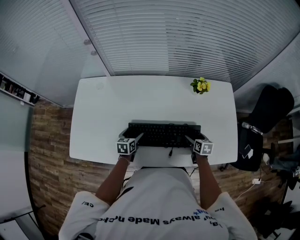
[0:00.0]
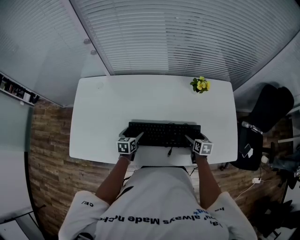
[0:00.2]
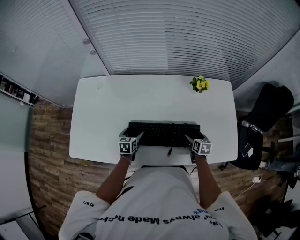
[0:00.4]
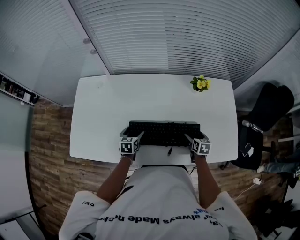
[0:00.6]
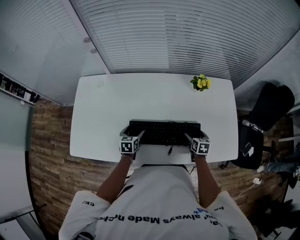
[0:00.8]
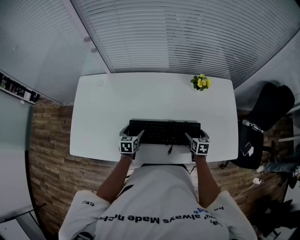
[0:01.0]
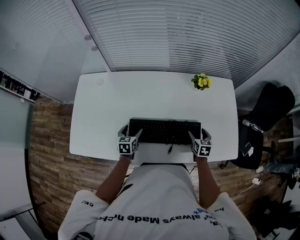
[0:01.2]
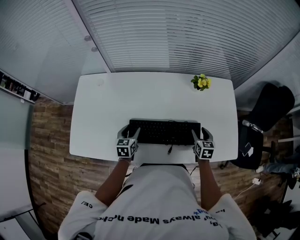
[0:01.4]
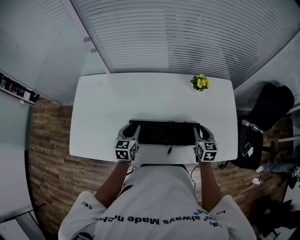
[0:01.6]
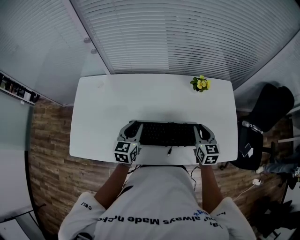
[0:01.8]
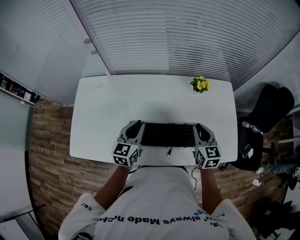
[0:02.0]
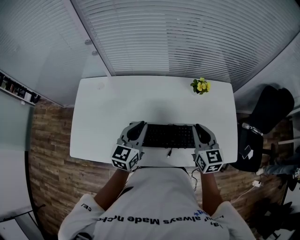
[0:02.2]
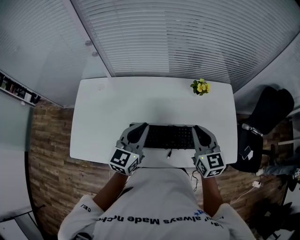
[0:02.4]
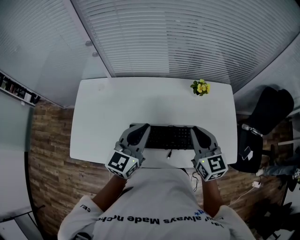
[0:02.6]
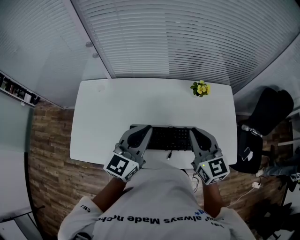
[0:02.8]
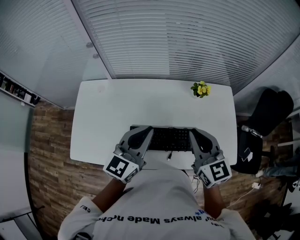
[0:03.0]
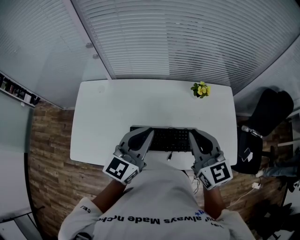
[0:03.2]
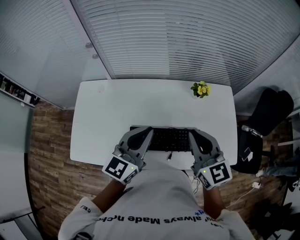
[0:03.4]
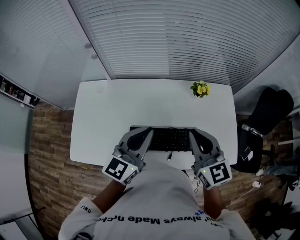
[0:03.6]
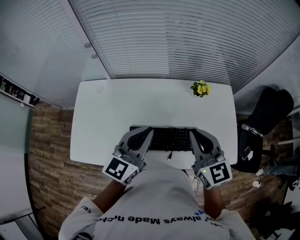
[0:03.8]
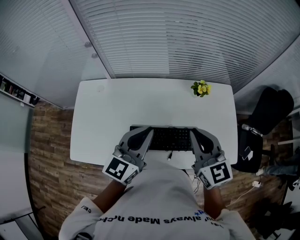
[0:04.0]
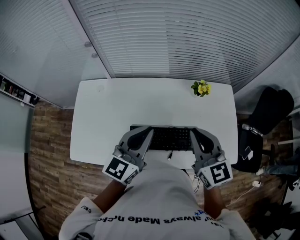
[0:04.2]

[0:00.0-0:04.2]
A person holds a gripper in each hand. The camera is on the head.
0:00.0 to 0:01.4: The two grippers go some 5 cm upward. The right gripper closes.
0:01.4 to 0:02.8: The left gripper travels upward by some 30 cm, points its fingers roughly 30 degrees further upward, and closes. The right gripper is displaced upward and to the left by about 30 cm, turns by some 30 degrees, and closes.
0:02.8 to 0:04.2: The grippers make only small movements.

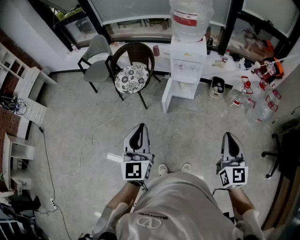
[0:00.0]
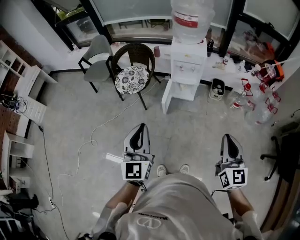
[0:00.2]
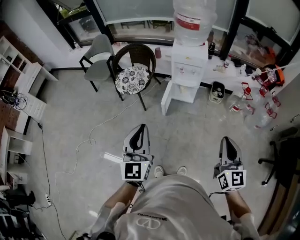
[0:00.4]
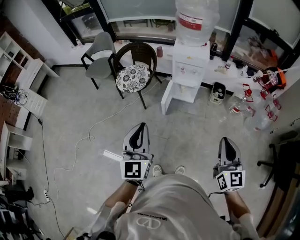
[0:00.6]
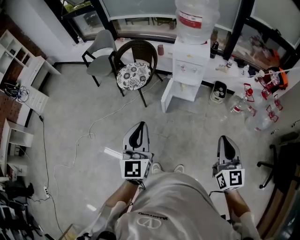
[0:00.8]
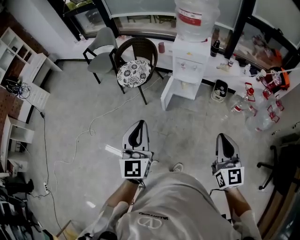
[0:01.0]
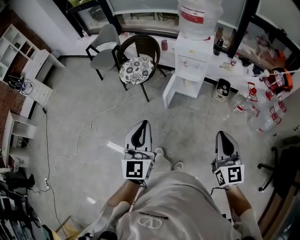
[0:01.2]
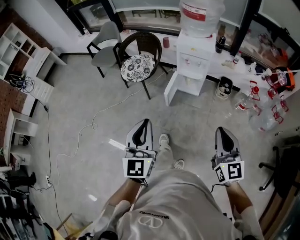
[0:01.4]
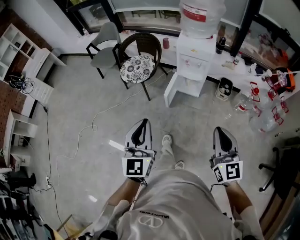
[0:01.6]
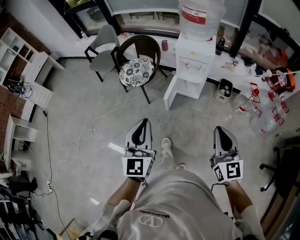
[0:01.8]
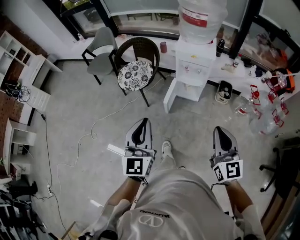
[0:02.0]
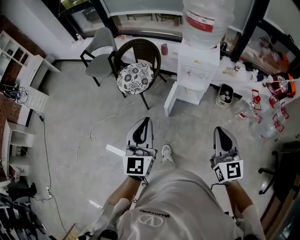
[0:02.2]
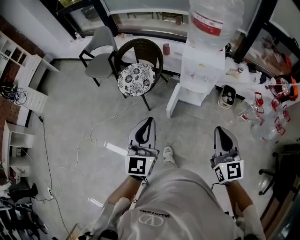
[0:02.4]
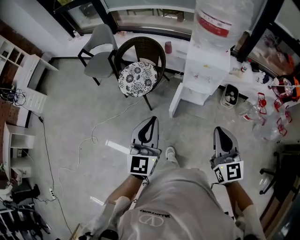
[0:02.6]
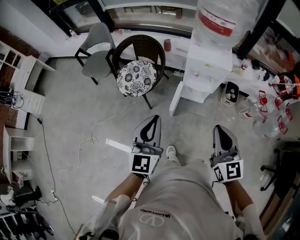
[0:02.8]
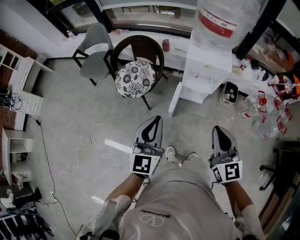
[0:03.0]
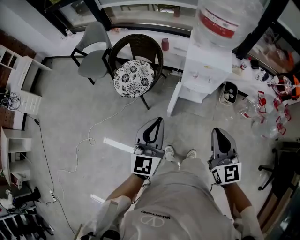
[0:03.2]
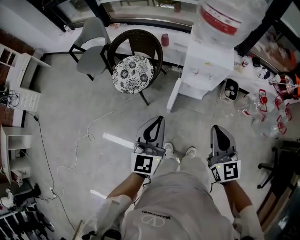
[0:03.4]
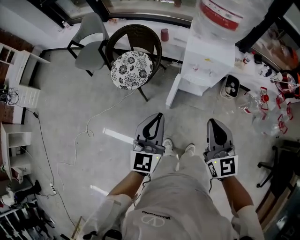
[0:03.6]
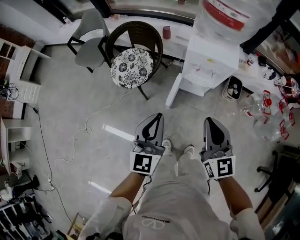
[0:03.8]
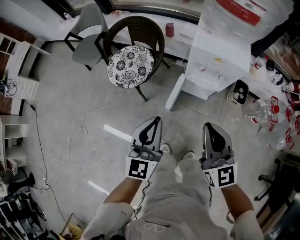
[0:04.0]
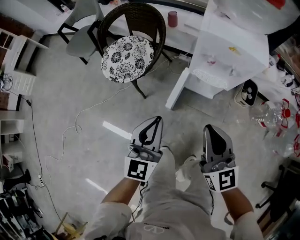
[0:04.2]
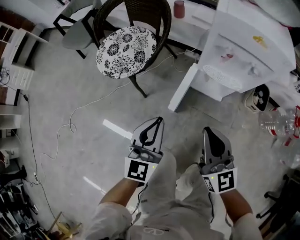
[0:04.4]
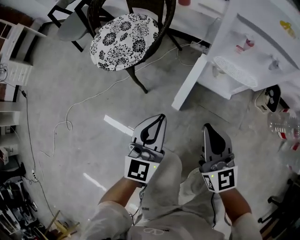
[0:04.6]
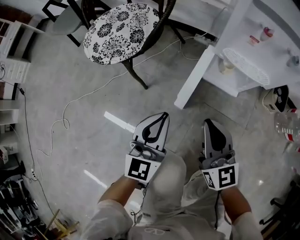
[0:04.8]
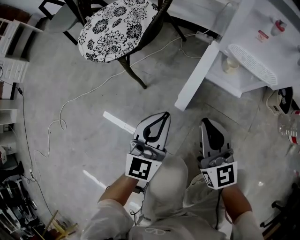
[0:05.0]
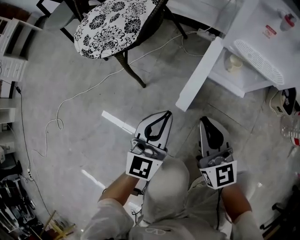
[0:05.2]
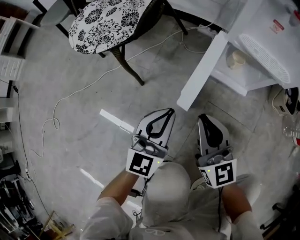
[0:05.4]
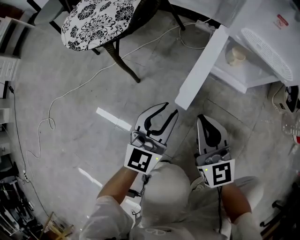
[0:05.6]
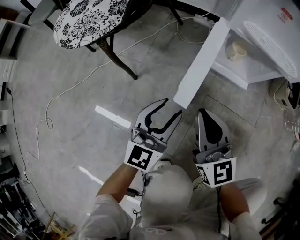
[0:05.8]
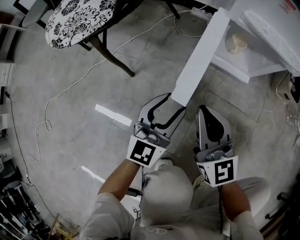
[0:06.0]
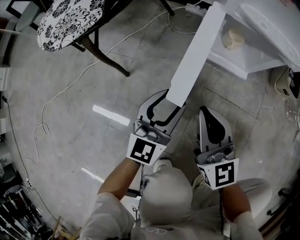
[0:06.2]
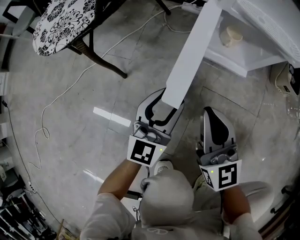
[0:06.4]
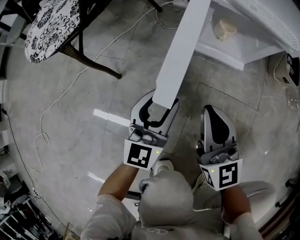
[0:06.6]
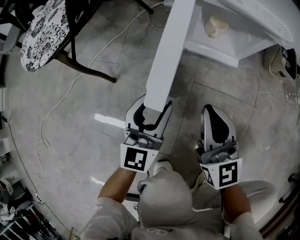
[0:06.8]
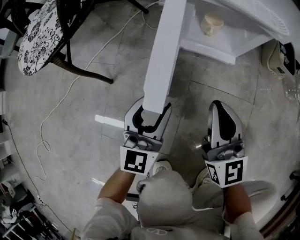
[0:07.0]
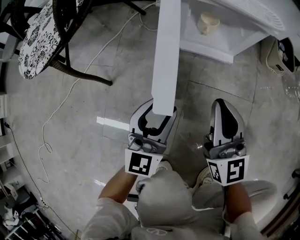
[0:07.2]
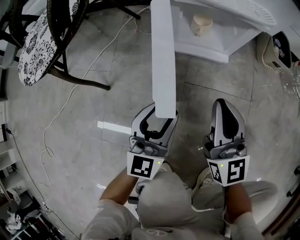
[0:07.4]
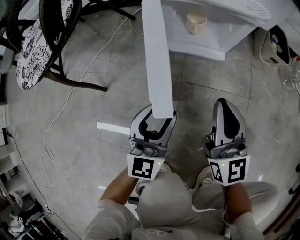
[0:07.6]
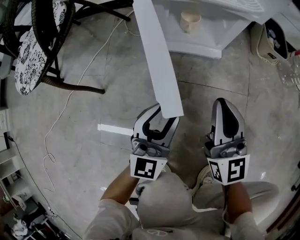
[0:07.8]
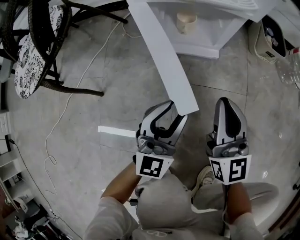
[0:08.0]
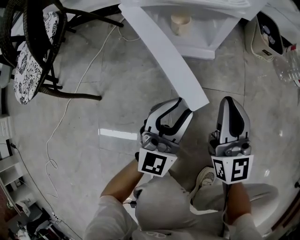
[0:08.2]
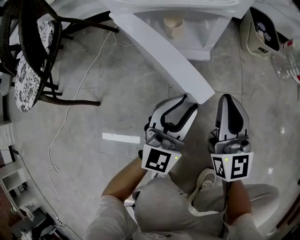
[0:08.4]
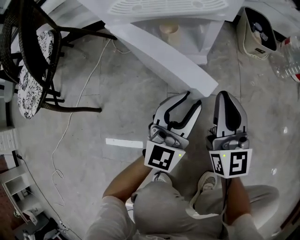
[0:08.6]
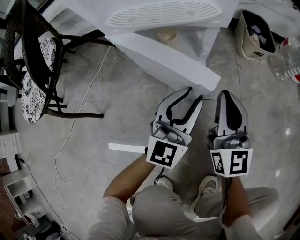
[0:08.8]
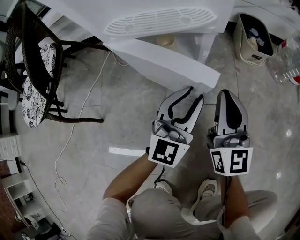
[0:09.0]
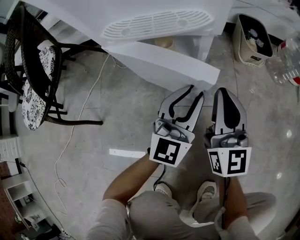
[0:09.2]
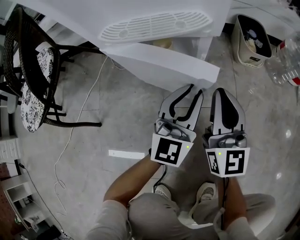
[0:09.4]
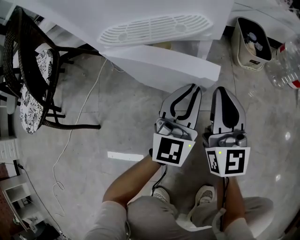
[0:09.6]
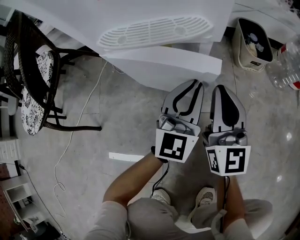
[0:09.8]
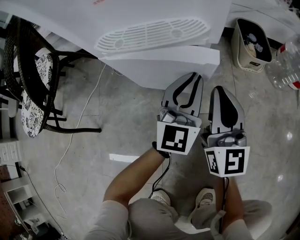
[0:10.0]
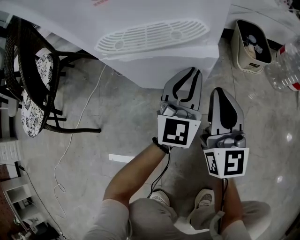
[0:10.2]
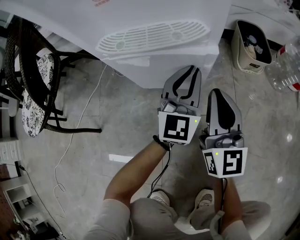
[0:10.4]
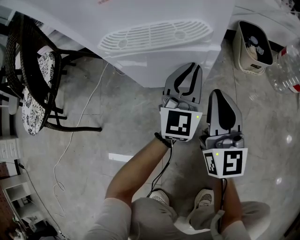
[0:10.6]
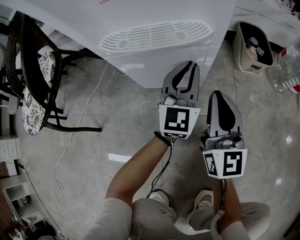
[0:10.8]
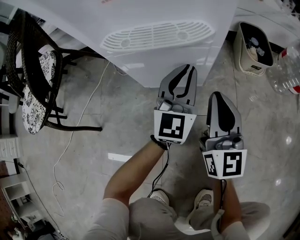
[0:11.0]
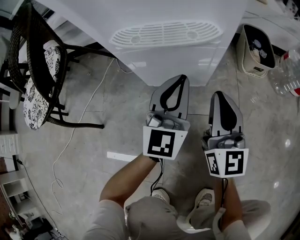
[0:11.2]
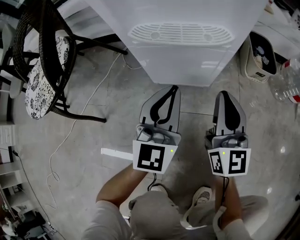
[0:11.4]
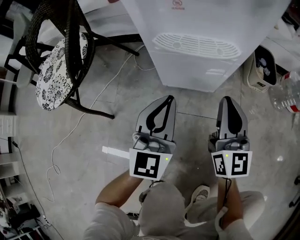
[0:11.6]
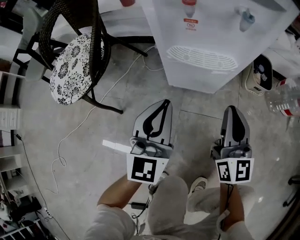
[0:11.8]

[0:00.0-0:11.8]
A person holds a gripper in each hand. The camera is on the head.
0:00.0 to 0:01.4: The left gripper shifts some 10 cm to the right.
0:01.4 to 0:03.0: Both grippers move forward, roughly 30 cm.
0:03.0 to 0:04.4: The grippers both shift downward by about 40 cm.
0:04.4 to 0:06.0: The grippers both shift downward by approximately 35 cm. The left gripper opens its fingers.
0:06.0 to 0:07.4: The right gripper heads to the right, covering roughly 15 cm. The left gripper goes roughly 10 cm to the right.
0:07.4 to 0:08.8: The grippers both shift to the right and forward by about 15 cm.
0:08.8 to 0:10.4: The right gripper moves forward, approximately 5 cm. The left gripper goes about 15 cm forward.
0:10.4 to 0:11.8: The right gripper travels upward by about 15 cm, while the left gripper shifts some 30 cm upward, to the left and backward.

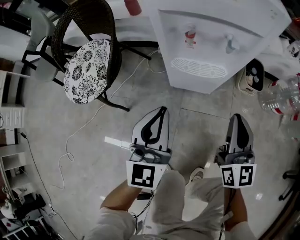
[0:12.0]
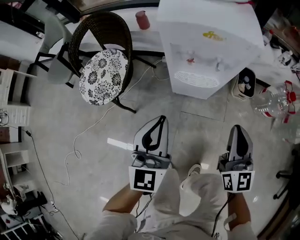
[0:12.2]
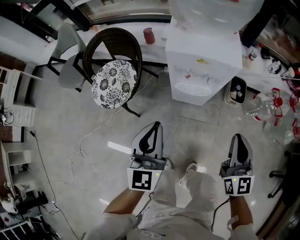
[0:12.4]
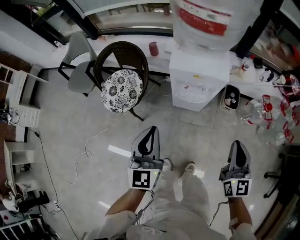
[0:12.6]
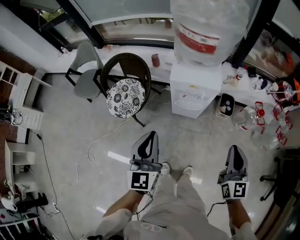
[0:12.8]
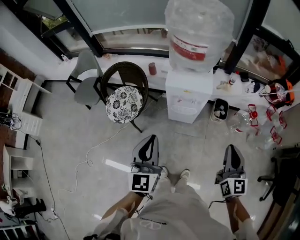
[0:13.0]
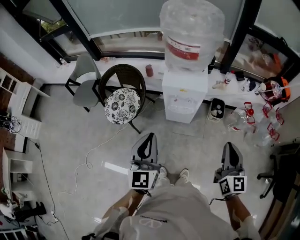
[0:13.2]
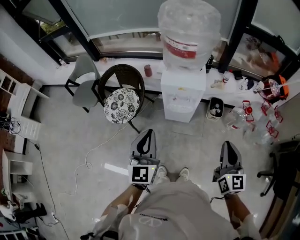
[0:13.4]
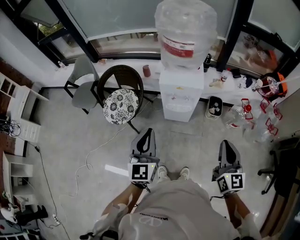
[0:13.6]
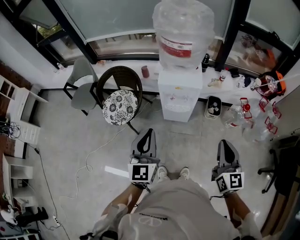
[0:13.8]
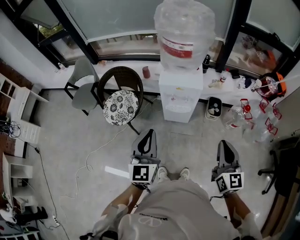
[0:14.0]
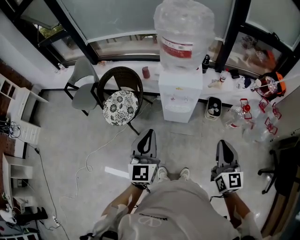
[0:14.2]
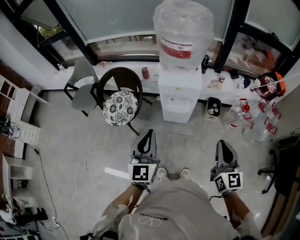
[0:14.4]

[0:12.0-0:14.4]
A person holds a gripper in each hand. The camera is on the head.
0:12.0 to 0:13.2: Both grippers travel together upward, some 50 cm.
0:13.2 to 0:14.4: The grippers stay close to where they were, moving slightly.

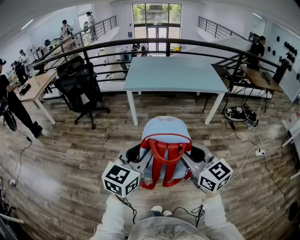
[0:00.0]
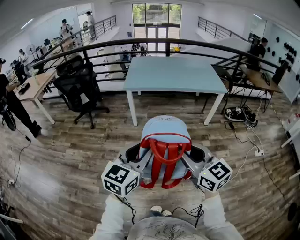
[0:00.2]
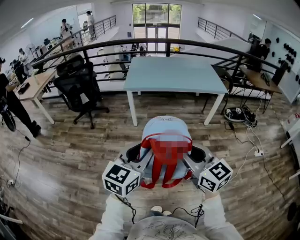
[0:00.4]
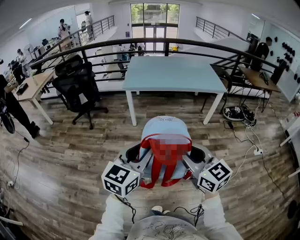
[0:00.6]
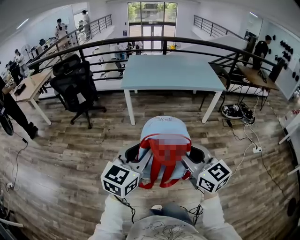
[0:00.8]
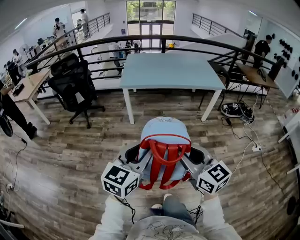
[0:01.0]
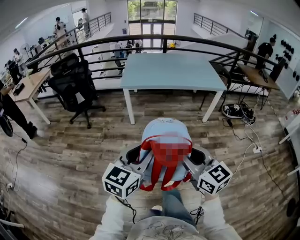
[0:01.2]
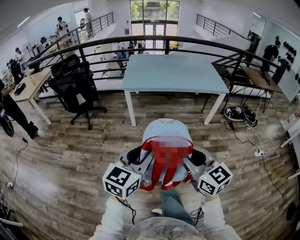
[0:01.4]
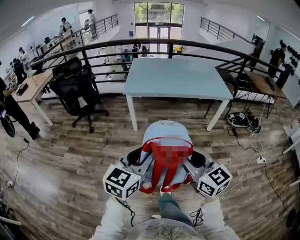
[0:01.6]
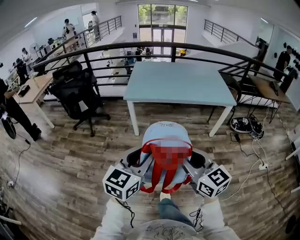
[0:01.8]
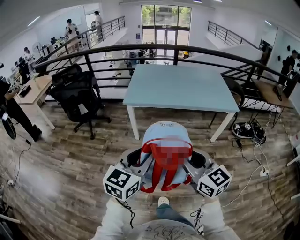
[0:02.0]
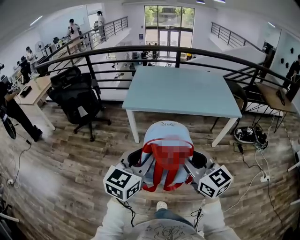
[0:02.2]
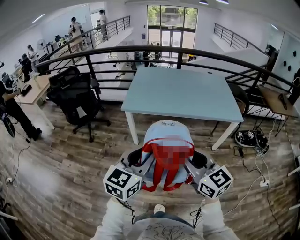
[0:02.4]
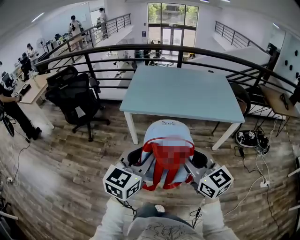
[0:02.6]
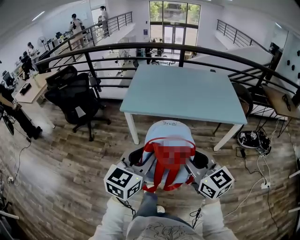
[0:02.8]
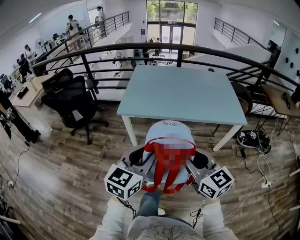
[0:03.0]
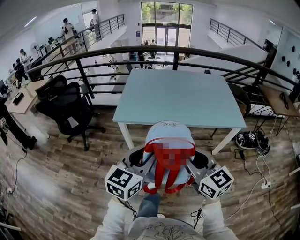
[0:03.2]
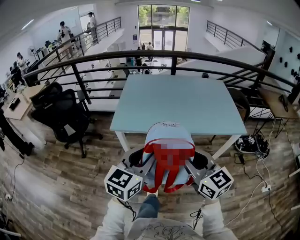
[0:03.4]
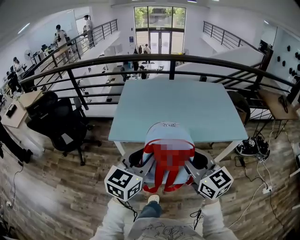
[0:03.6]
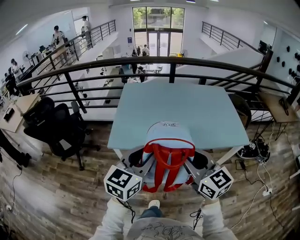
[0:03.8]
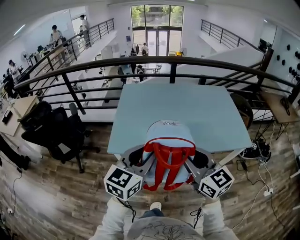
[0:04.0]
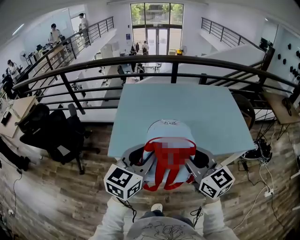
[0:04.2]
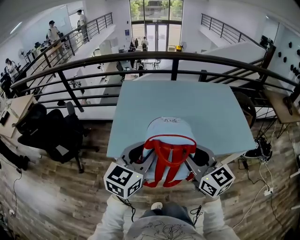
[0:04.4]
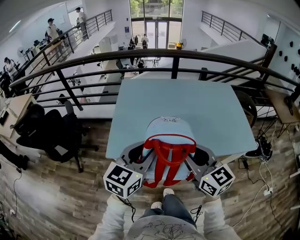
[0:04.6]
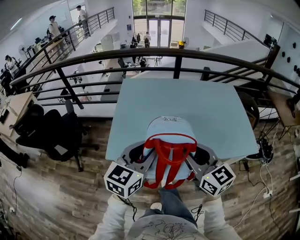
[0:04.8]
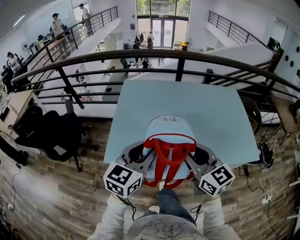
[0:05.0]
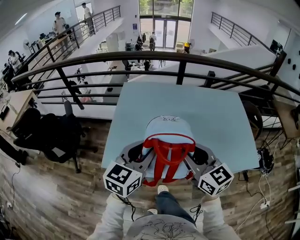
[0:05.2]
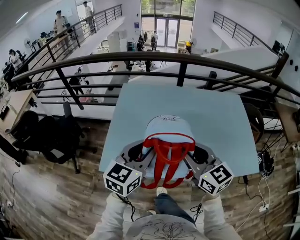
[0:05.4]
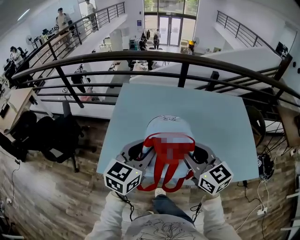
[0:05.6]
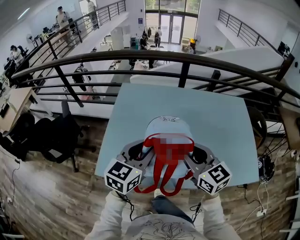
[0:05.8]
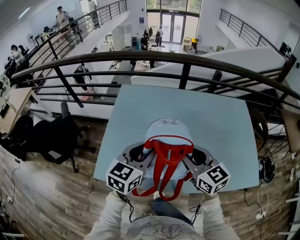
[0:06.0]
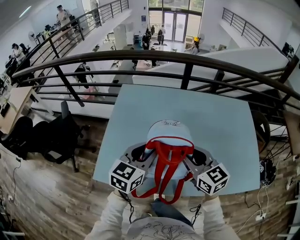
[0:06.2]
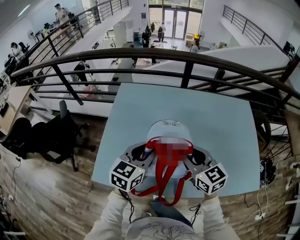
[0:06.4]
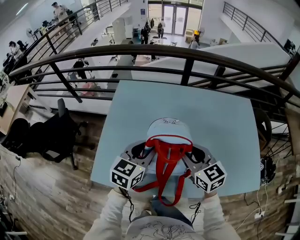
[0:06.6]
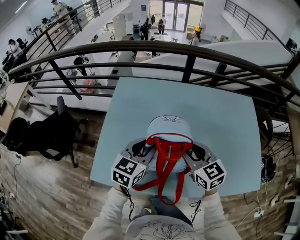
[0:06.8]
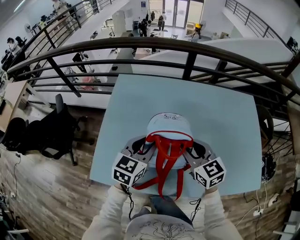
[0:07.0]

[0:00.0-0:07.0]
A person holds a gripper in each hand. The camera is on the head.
0:00.0 to 0:01.4: Both grippers move forward, approximately 5 cm.
0:01.4 to 0:02.8: Both grippers move forward, roughly 35 cm.
0:02.8 to 0:04.2: Both grippers move forward, some 40 cm.
0:04.2 to 0:05.6: The grippers both shift forward by some 25 cm.
0:05.6 to 0:07.0: The two grippers go about 20 cm forward and downward.
